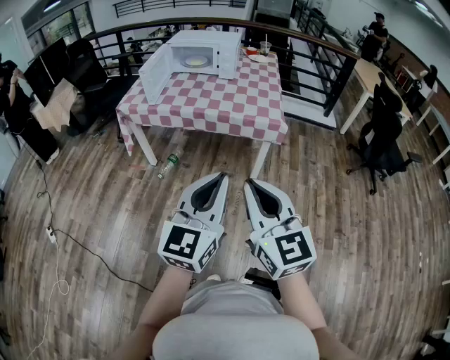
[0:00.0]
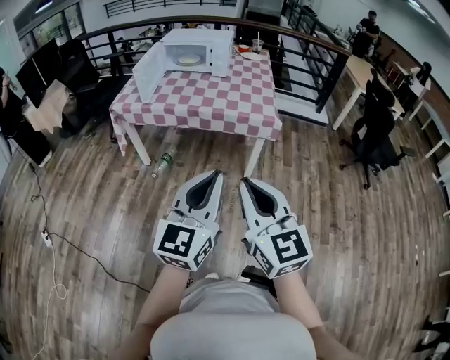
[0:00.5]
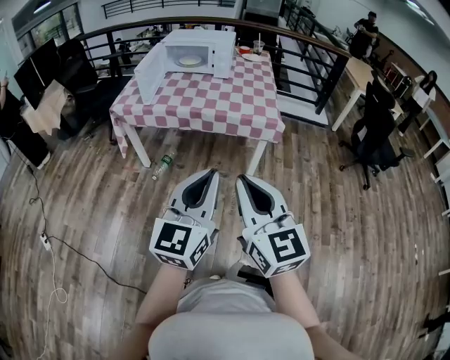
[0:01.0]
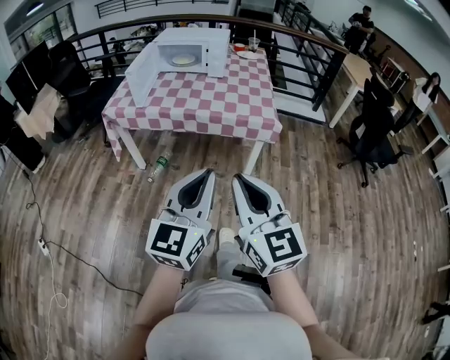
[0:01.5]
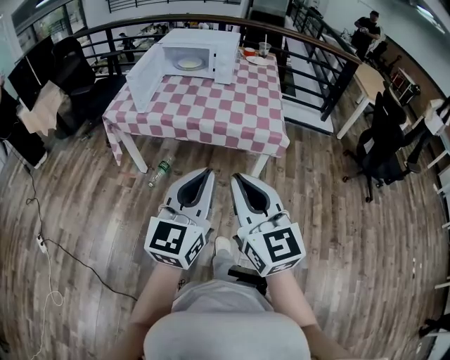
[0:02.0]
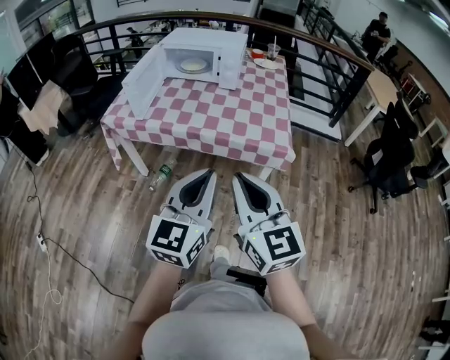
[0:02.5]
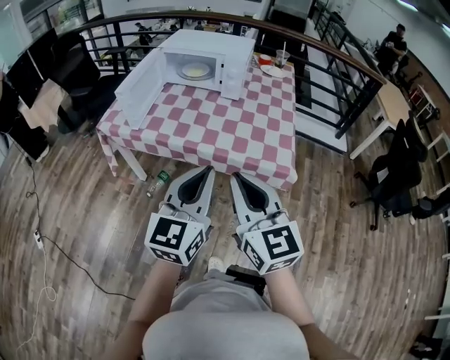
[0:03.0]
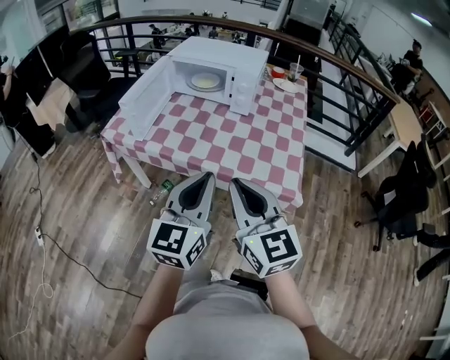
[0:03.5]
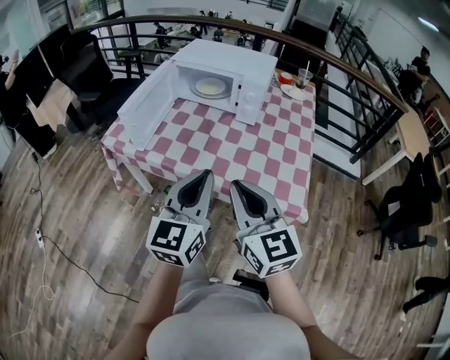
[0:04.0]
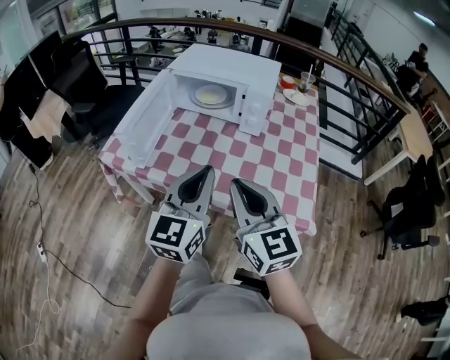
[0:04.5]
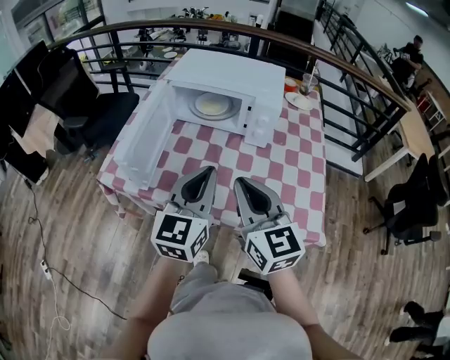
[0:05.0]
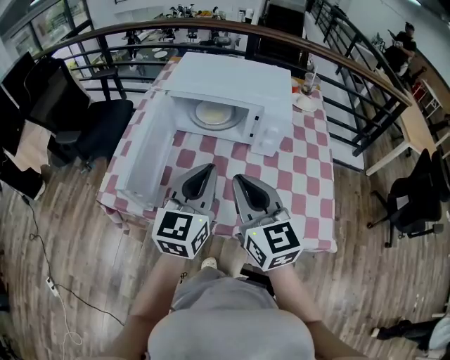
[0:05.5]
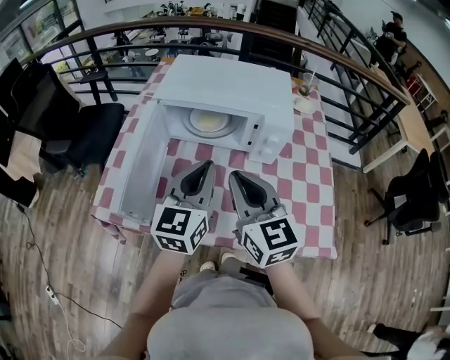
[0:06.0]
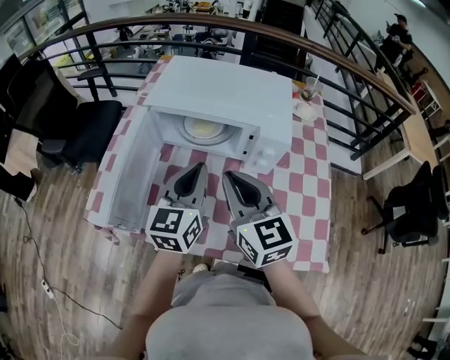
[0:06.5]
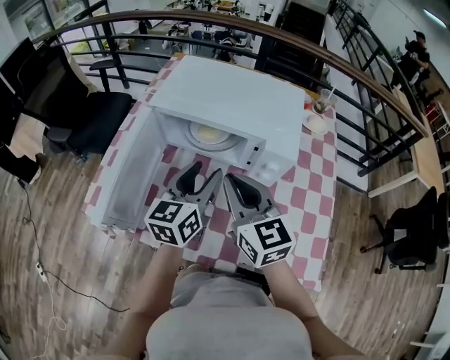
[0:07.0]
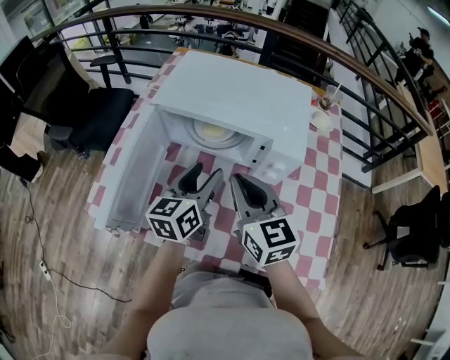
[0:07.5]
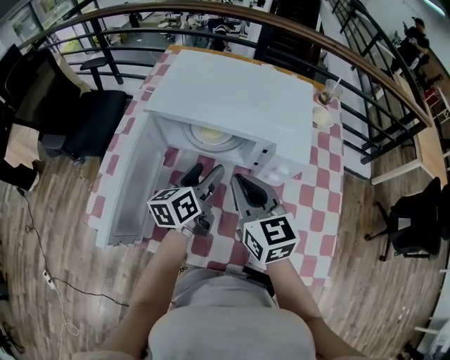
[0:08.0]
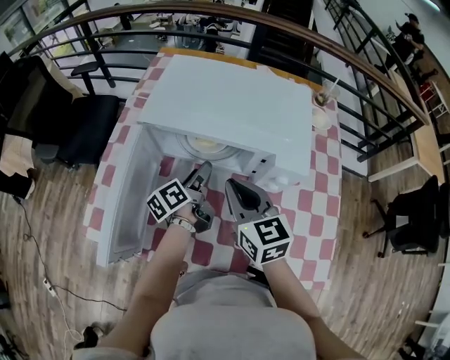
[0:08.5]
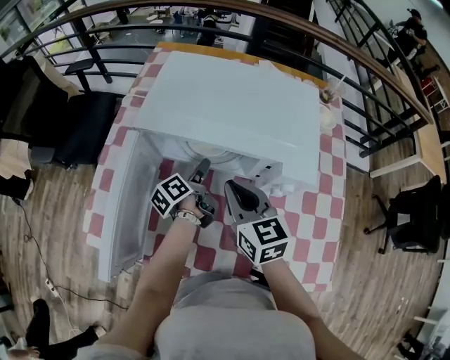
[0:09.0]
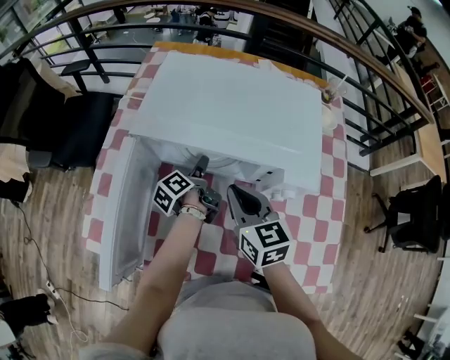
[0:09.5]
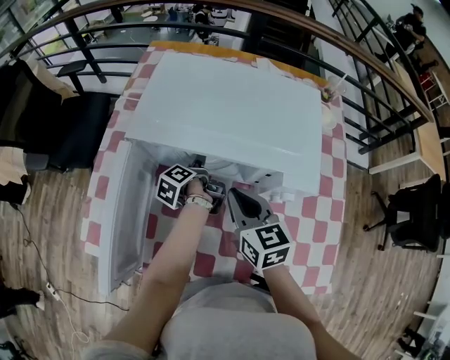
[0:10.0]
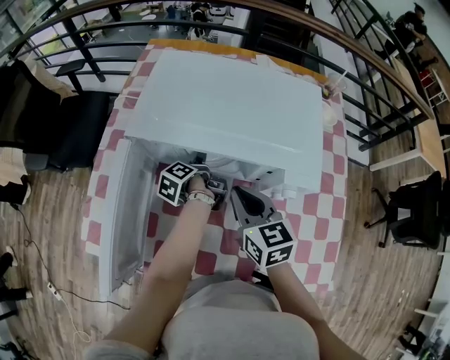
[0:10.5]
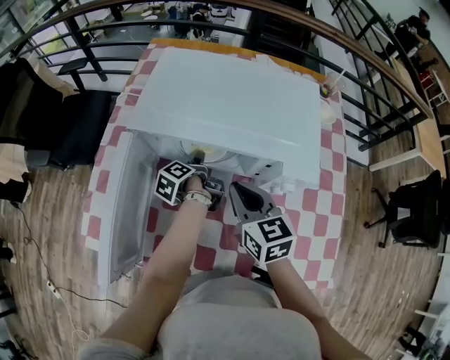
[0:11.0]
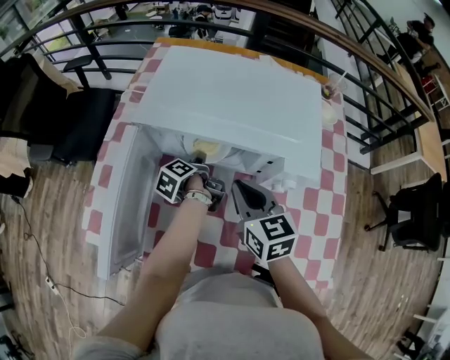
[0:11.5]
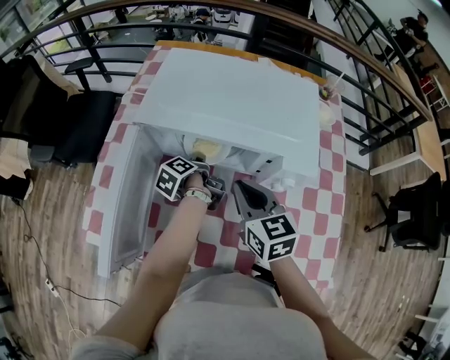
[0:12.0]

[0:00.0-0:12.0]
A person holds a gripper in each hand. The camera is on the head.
0.0 to 2.0 s: Both grippers move forward, about 15 cm.
2.0 to 4.0 s: The two grippers go some 35 cm forward.
4.0 to 6.0 s: The two grippers go some 30 cm forward.
6.0 to 8.0 s: The two grippers go approximately 15 cm forward and downward. The left gripper swivels about 40 degrees, and opens up.
8.0 to 10.0 s: The right gripper shifts some 10 cm downward and forward; the left gripper travels downward and forward by some 20 cm, and rotates around the line of its fingers by roughly 50 degrees, counterclockwise from behind.
10.0 to 12.0 s: The left gripper closes its fingers.

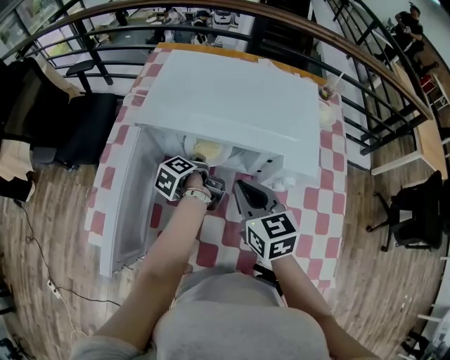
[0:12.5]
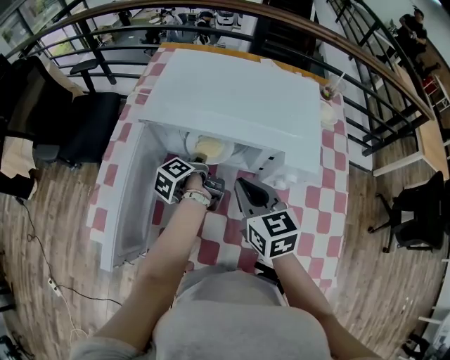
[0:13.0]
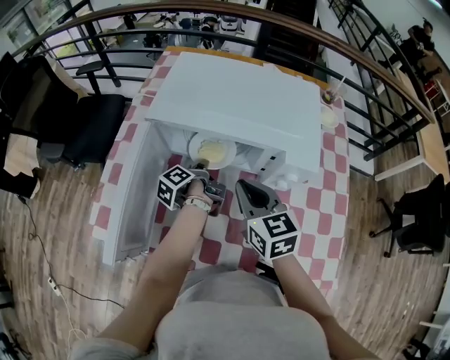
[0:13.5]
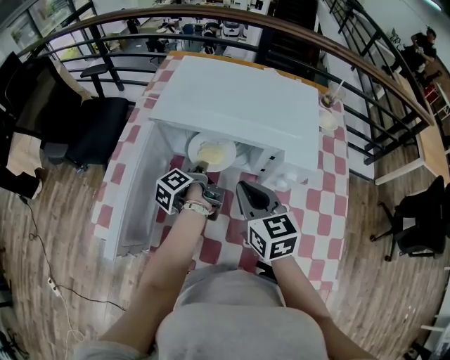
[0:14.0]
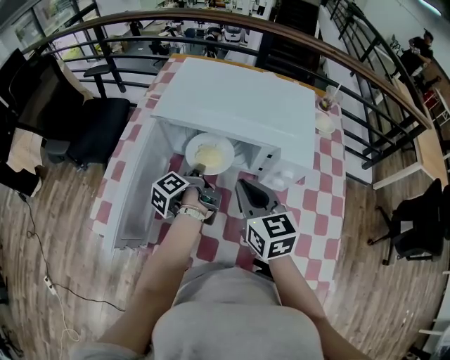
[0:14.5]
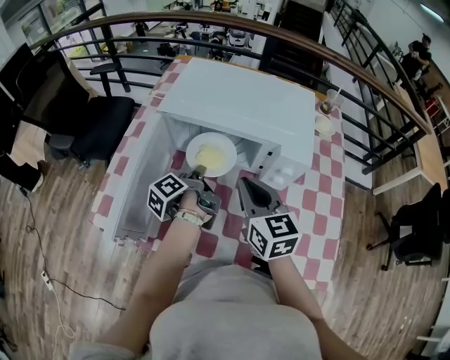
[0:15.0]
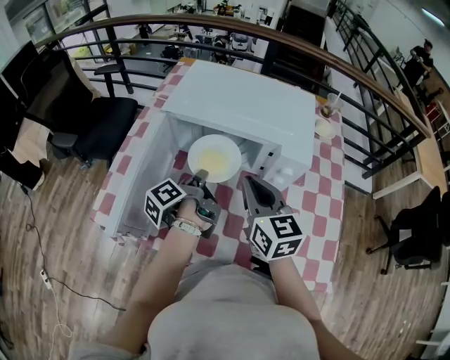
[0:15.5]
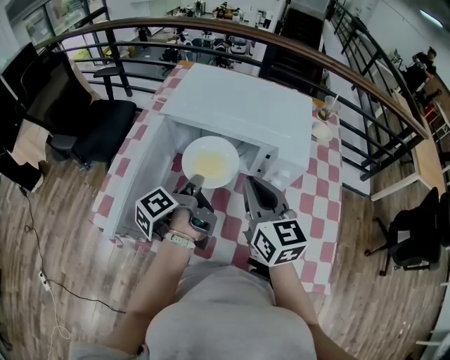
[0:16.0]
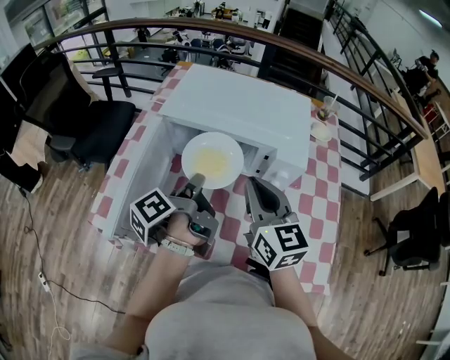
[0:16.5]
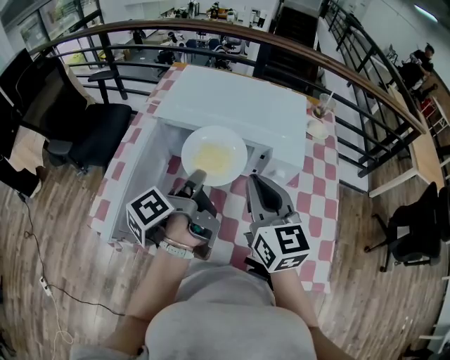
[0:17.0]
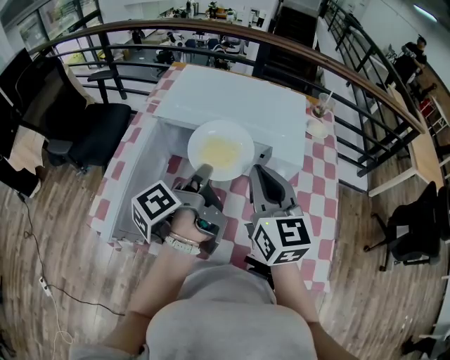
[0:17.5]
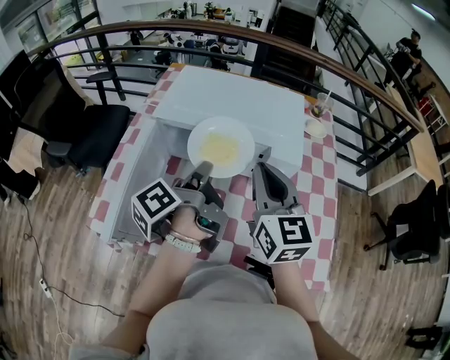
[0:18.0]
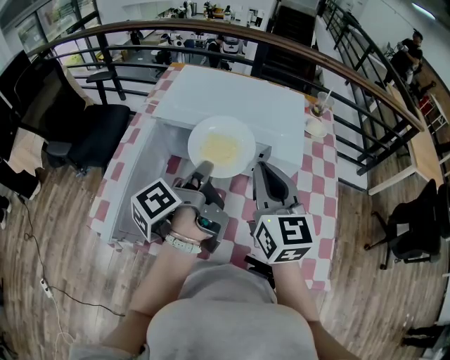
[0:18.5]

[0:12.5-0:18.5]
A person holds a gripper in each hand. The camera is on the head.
12.5 to 14.5 s: The left gripper moves backward and upward, some 10 cm.
14.5 to 16.5 s: The right gripper moves upward, about 5 cm. The left gripper heads upward and backward, covering roughly 15 cm.
16.5 to 18.5 s: The left gripper changes place by some 5 cm.

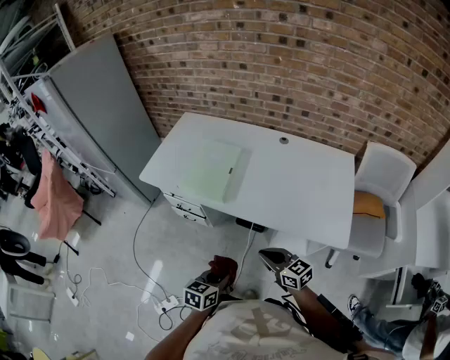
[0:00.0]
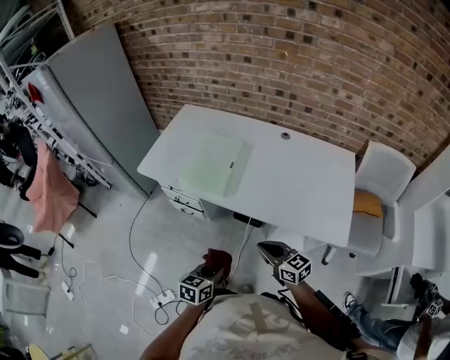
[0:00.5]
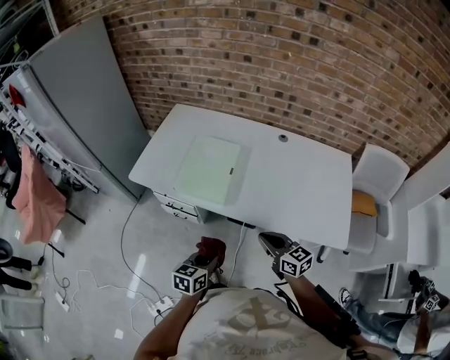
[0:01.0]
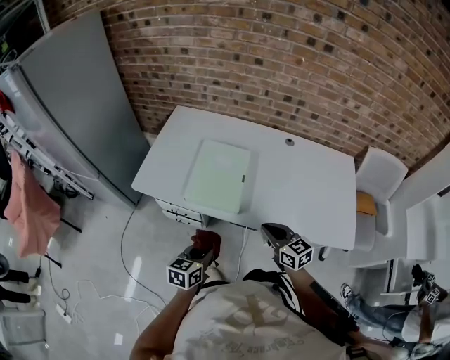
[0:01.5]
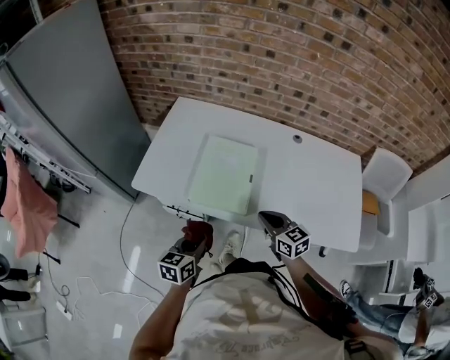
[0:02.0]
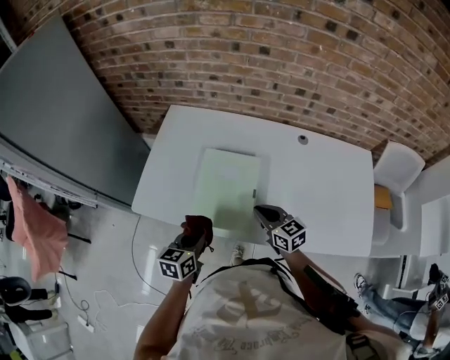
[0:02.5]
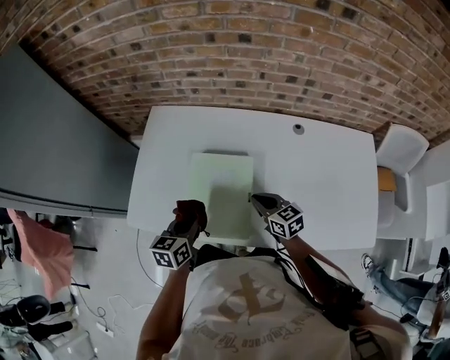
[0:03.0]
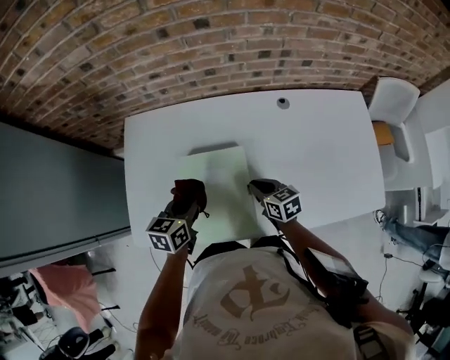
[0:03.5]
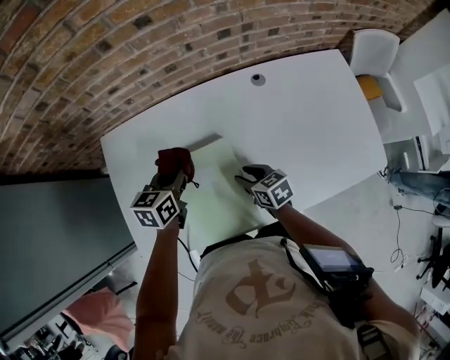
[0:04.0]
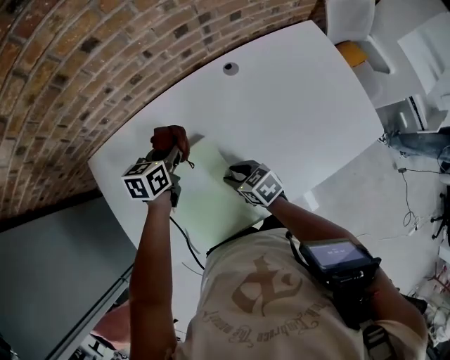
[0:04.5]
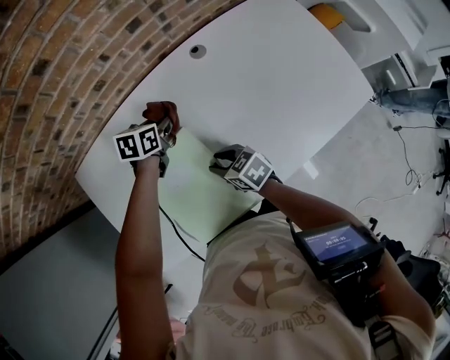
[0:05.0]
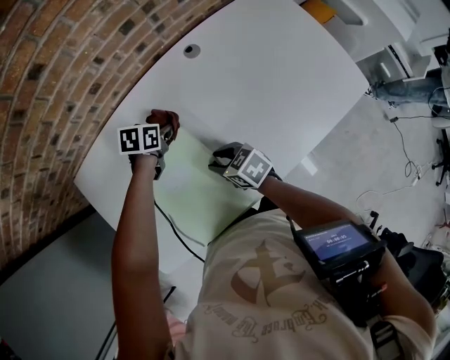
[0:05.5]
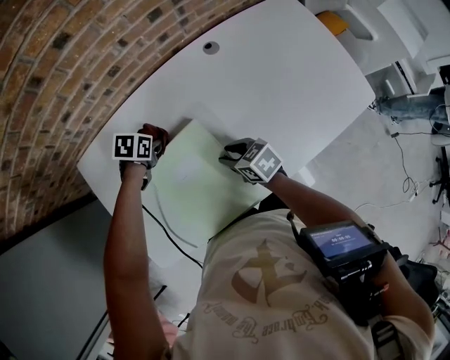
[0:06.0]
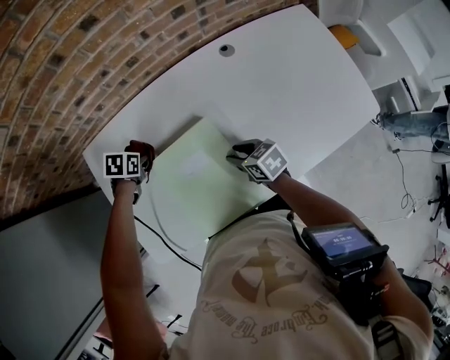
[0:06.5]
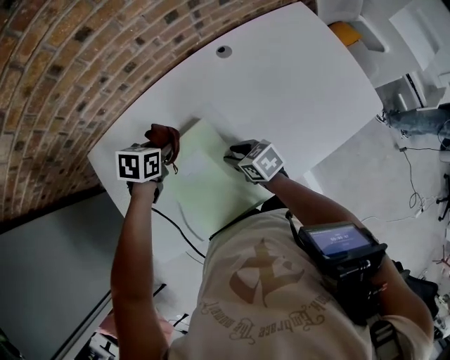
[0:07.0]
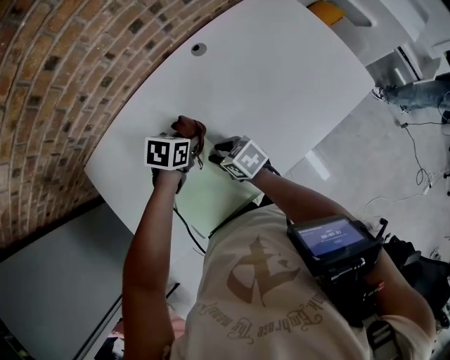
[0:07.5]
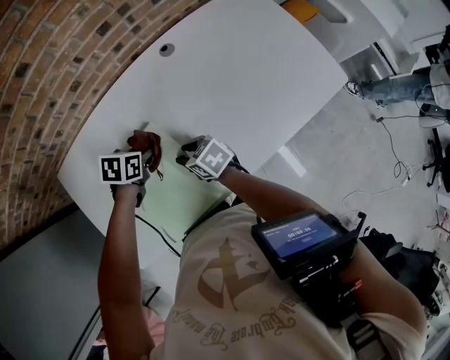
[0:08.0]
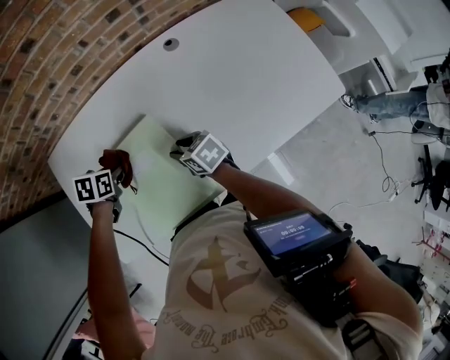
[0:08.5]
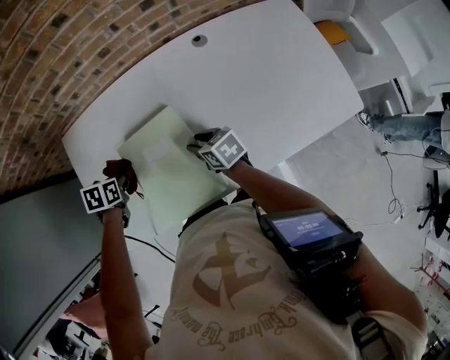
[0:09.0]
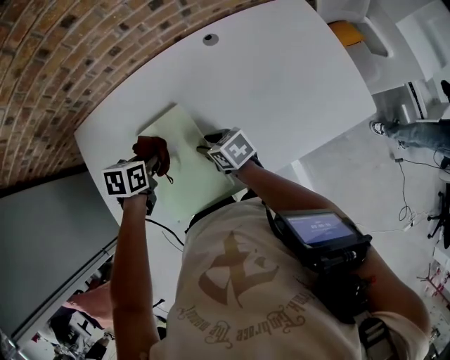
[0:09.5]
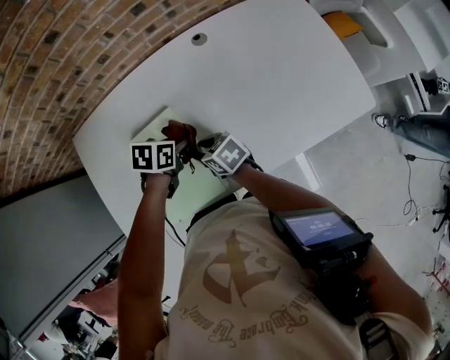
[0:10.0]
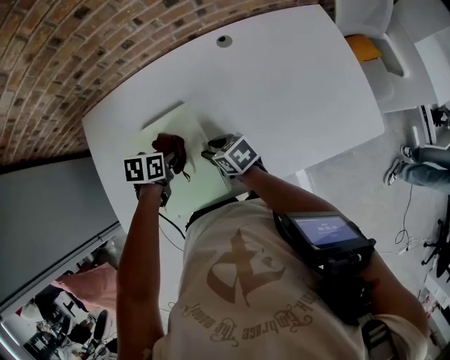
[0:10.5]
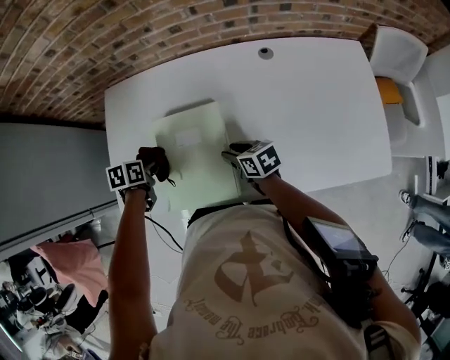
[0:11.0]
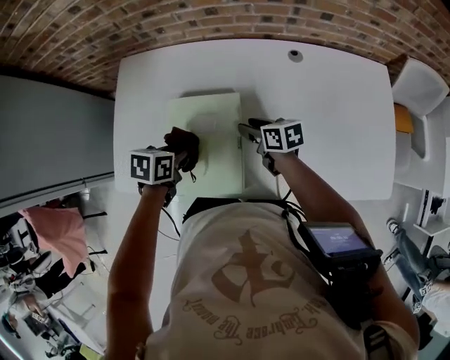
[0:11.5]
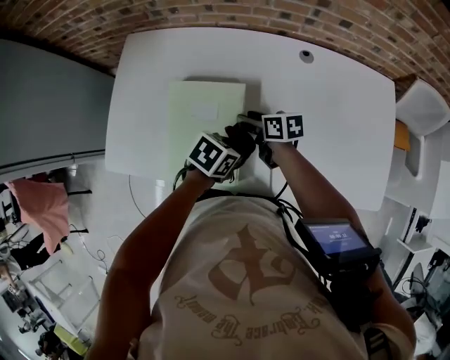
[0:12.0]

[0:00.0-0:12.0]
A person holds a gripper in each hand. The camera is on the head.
0.0 to 2.0 s: Both grippers travel together forward and to the left, roughly 30 cm.
2.0 to 4.0 s: The left gripper heads forward, covering about 40 cm, and turns by some 30 degrees. Meanwhile the right gripper shifts some 25 cm forward and downward, changes its angle by about 30 degrees, and opens its fingers.
4.0 to 6.0 s: The left gripper goes approximately 15 cm downward, and angles its fingers downward, by roughly 30 degrees.
6.0 to 8.0 s: The left gripper ends up roughly 15 cm from where it was.
10.0 to 12.0 s: The right gripper ends up roughly 5 cm from where it was.
